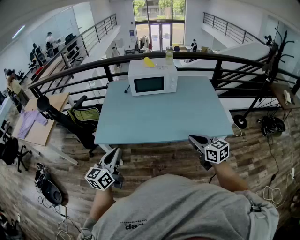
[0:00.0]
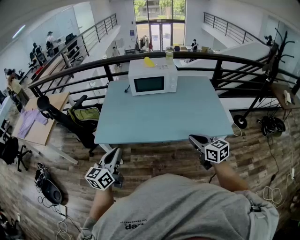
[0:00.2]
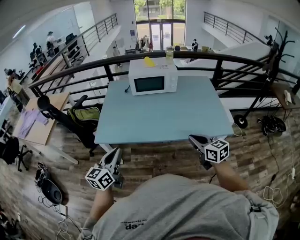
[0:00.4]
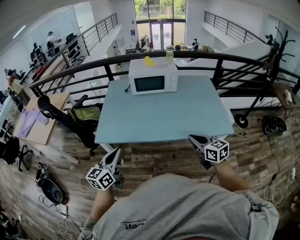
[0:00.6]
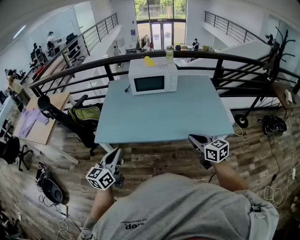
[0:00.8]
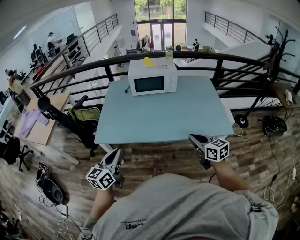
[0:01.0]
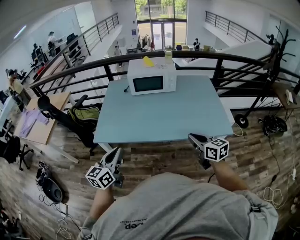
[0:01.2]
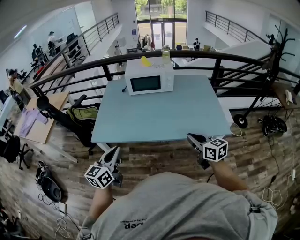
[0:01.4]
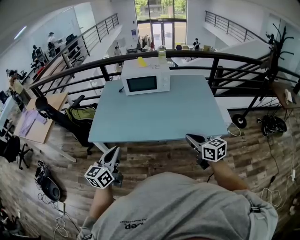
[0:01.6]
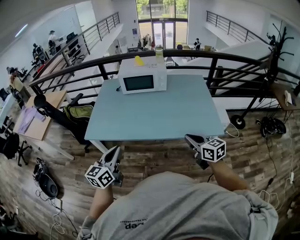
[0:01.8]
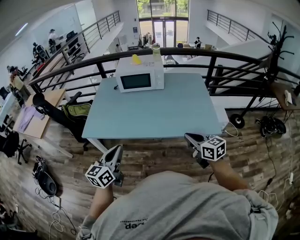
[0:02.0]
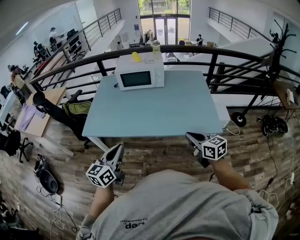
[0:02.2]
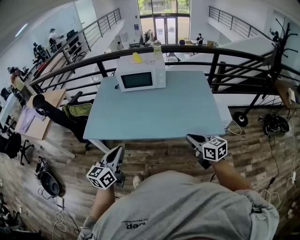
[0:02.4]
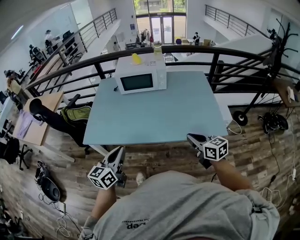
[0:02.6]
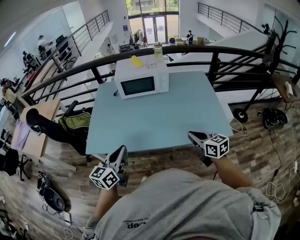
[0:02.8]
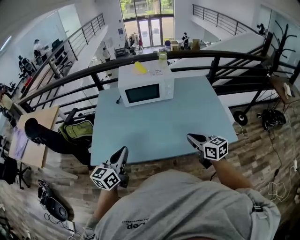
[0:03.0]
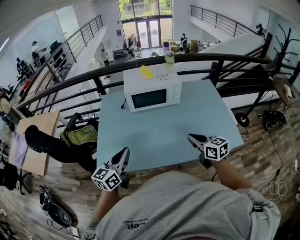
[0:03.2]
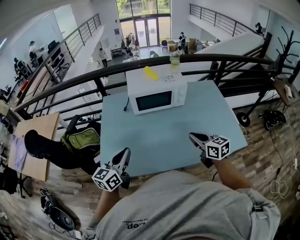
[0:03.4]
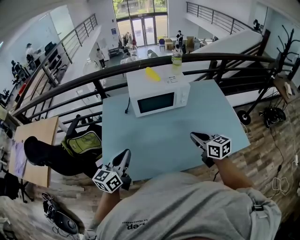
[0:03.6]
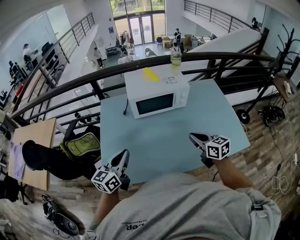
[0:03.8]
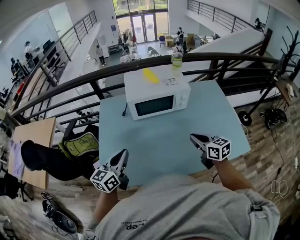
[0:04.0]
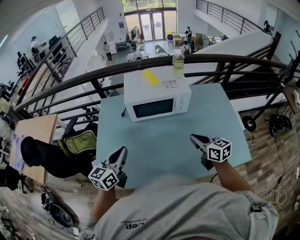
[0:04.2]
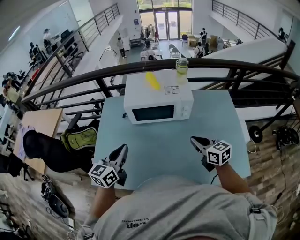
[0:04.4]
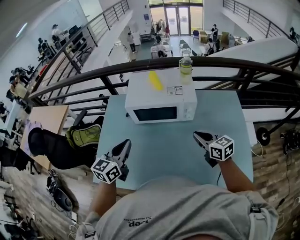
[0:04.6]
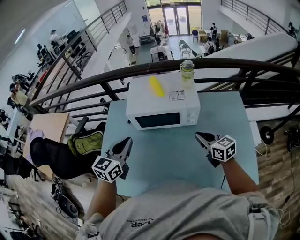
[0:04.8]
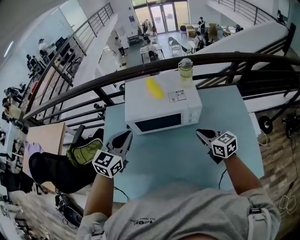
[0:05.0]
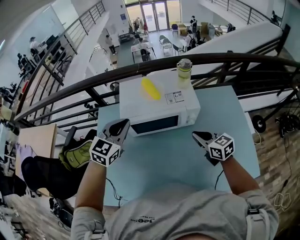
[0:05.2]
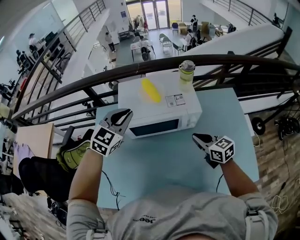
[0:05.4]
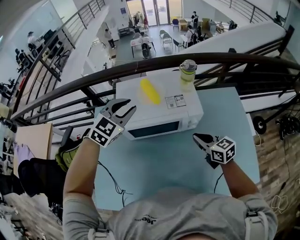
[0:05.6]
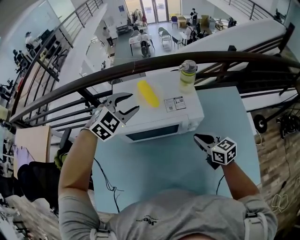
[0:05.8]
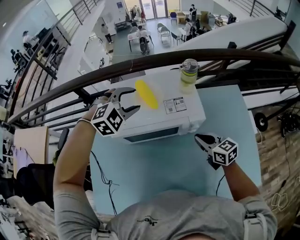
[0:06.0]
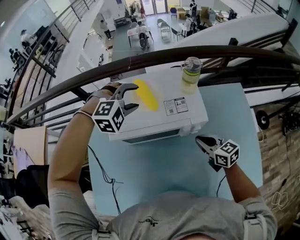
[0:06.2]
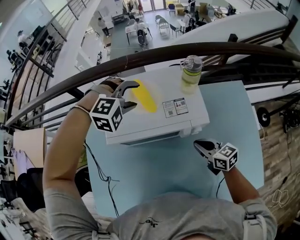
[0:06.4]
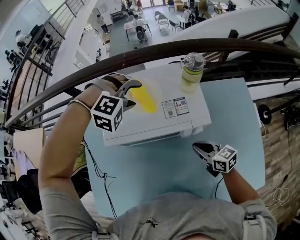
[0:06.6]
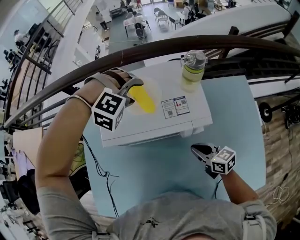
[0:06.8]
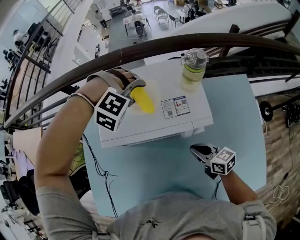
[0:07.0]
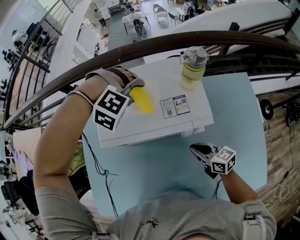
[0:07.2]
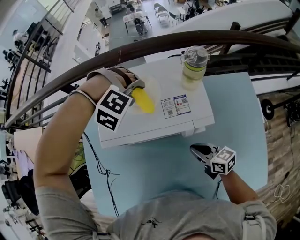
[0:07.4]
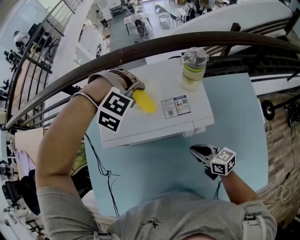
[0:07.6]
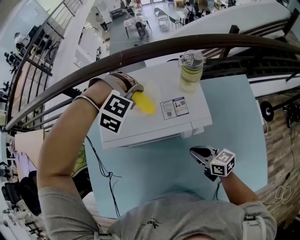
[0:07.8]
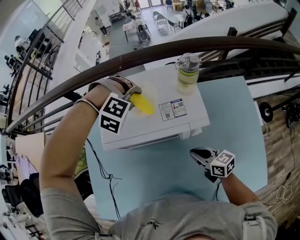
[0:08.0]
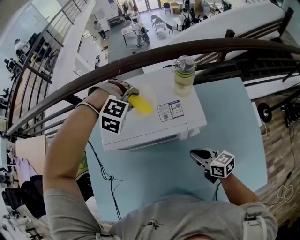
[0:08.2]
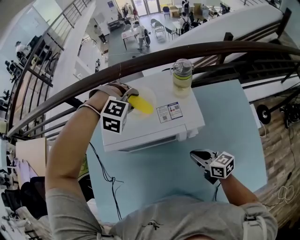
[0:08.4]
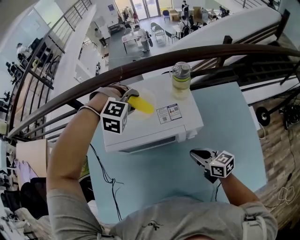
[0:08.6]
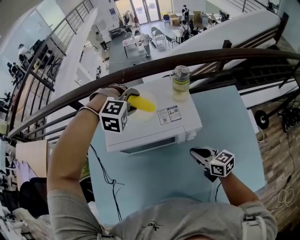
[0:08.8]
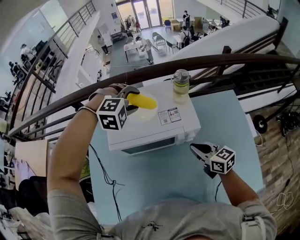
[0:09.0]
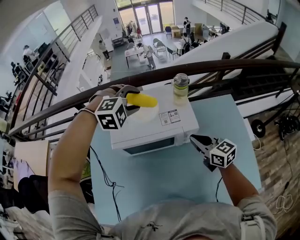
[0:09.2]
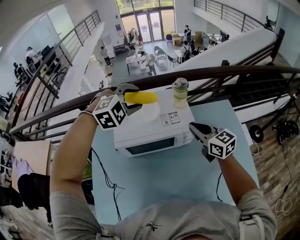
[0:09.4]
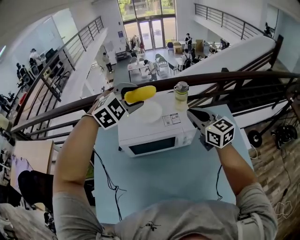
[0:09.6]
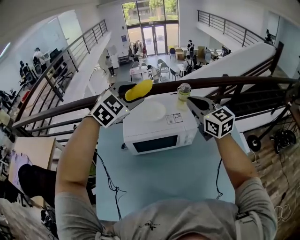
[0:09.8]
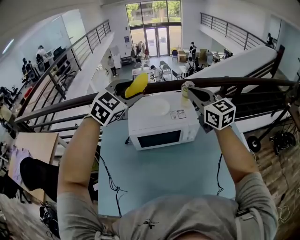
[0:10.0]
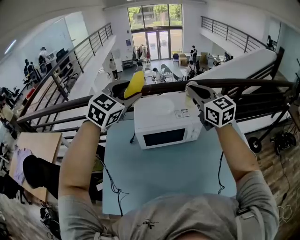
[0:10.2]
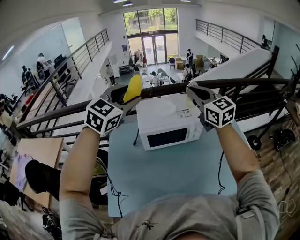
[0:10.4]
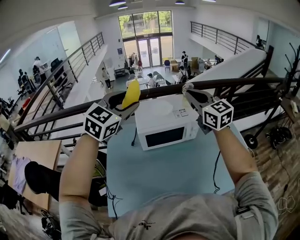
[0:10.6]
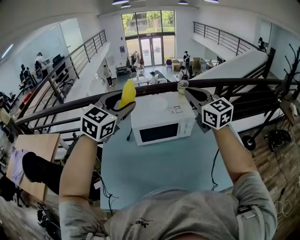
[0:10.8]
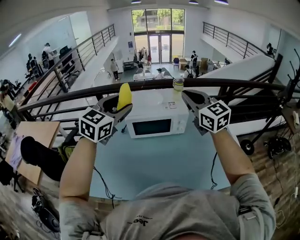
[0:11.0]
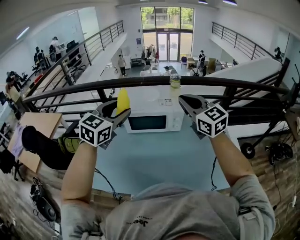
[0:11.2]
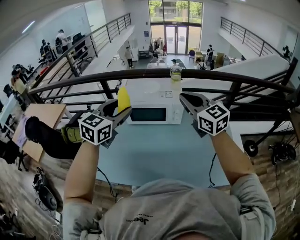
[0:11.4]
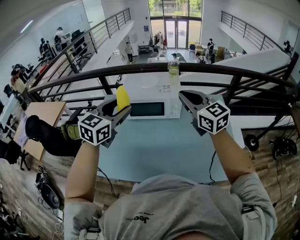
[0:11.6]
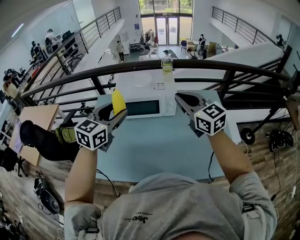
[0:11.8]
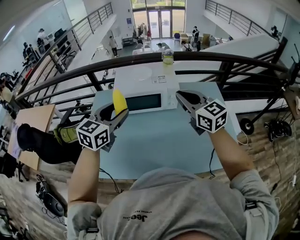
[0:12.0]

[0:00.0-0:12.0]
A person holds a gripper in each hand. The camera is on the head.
0.0 to 1.6 s: Both grippers move to the right, about 5 cm.
1.6 to 3.0 s: Both grippers move forward, some 15 cm.
3.0 to 4.4 s: Both grippers travel together forward, approximately 25 cm.
4.4 to 6.0 s: The right gripper moves forward, some 20 cm. The left gripper goes about 35 cm forward, twists roughly 70 degrees clockwise, seen from behind, and opens.
6.0 to 7.6 s: The grippers both shift downward by roughly 10 cm. The left gripper rolls clockwise, seen from behind, by some 40 degrees.
7.6 to 9.0 s: The two grippers go approximately 10 cm upward. The left gripper swivels about 30 degrees.
9.0 to 10.4 s: The left gripper goes some 35 cm upward, backward and to the left, and tilts its fingers about 40 degrees upward. The right gripper heads upward, covering some 35 cm, and swivels approximately 40 degrees.
10.4 to 12.0 s: Both grippers travel together backward, downward and to the right, approximately 25 cm. The left gripper rotates some 30 degrees.

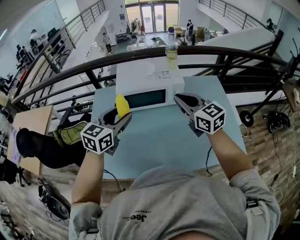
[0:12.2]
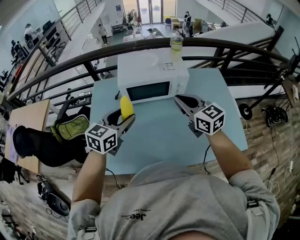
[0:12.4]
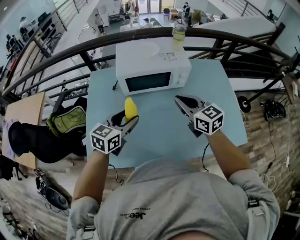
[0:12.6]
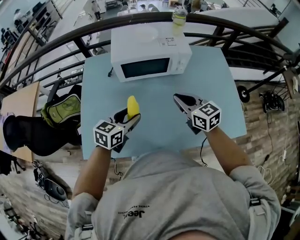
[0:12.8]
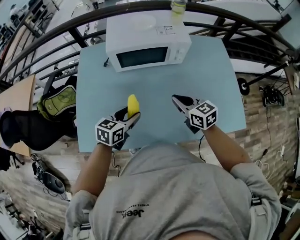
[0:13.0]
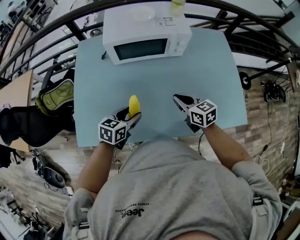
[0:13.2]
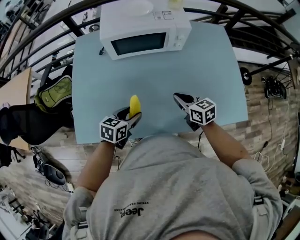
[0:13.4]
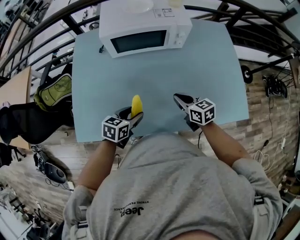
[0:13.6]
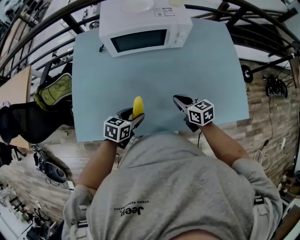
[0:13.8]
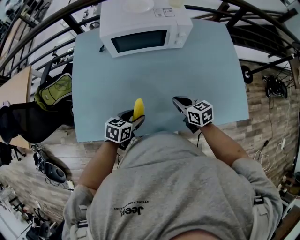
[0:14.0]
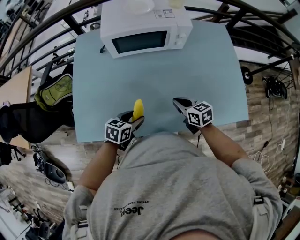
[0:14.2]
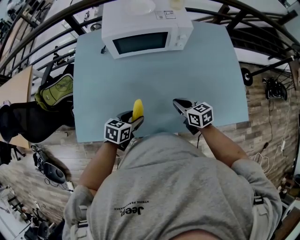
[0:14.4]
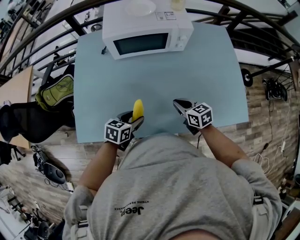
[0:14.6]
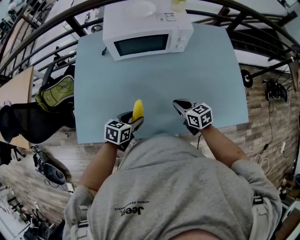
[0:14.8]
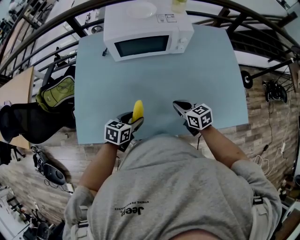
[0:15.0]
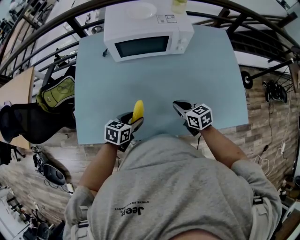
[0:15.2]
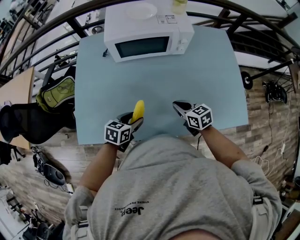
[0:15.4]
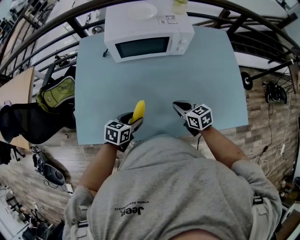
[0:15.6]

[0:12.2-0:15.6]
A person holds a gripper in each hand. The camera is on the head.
12.2 to 13.8 s: The right gripper moves downward, approximately 30 cm, and swivels roughly 40 degrees. The left gripper moves downward and backward, some 35 cm, and changes its angle by approximately 40 degrees.
13.8 to 15.6 s: The grippers stay close to where they were, moving slightly.

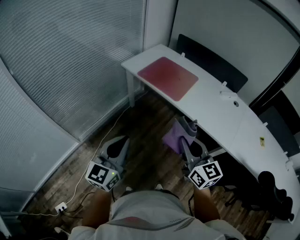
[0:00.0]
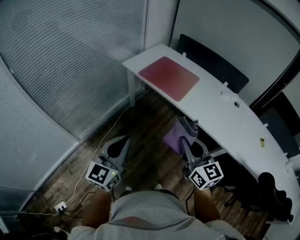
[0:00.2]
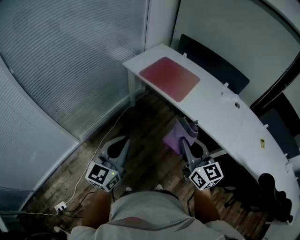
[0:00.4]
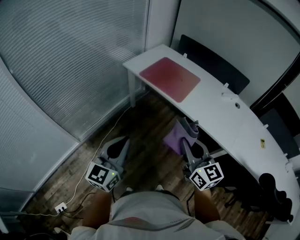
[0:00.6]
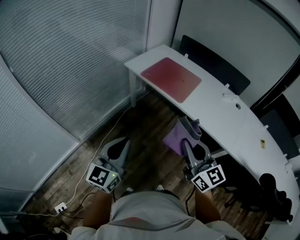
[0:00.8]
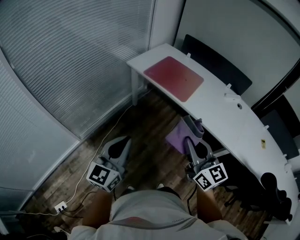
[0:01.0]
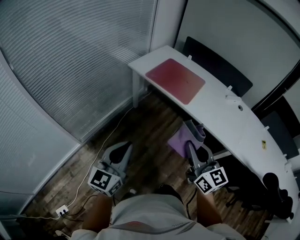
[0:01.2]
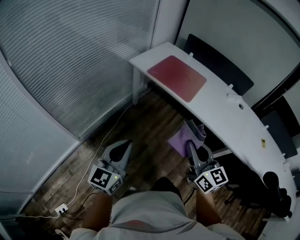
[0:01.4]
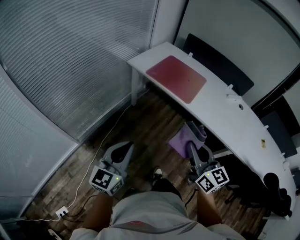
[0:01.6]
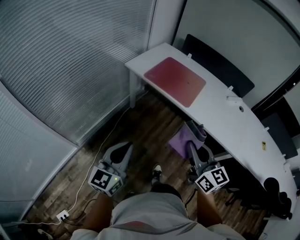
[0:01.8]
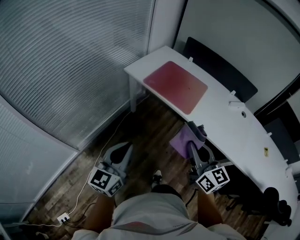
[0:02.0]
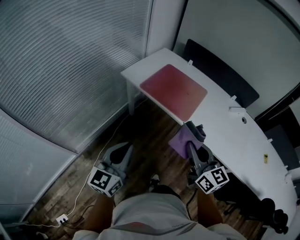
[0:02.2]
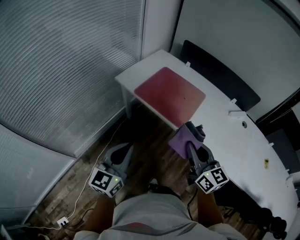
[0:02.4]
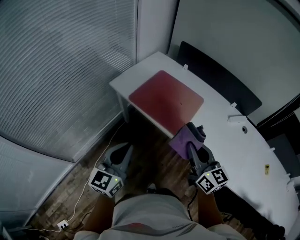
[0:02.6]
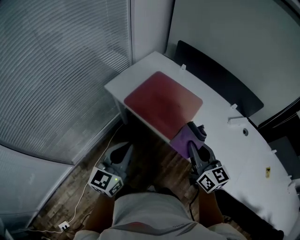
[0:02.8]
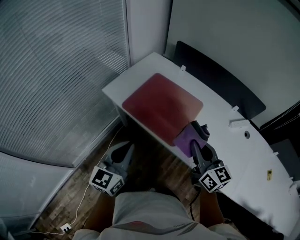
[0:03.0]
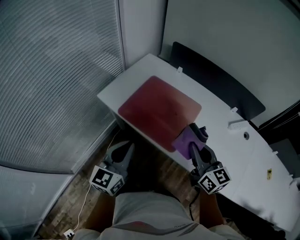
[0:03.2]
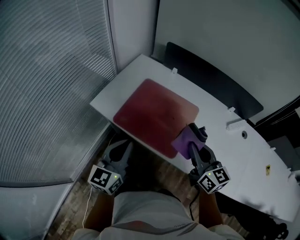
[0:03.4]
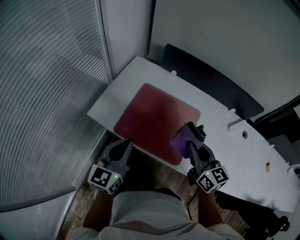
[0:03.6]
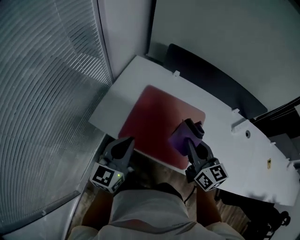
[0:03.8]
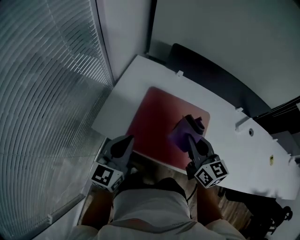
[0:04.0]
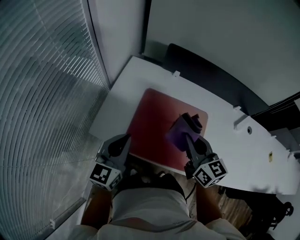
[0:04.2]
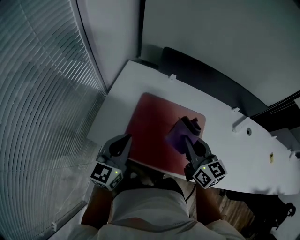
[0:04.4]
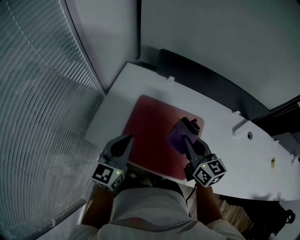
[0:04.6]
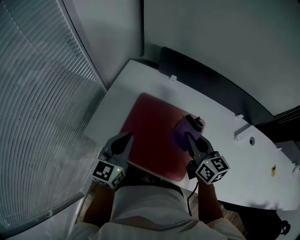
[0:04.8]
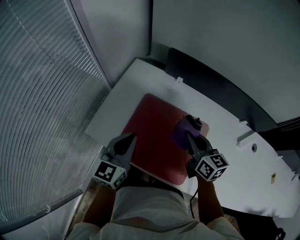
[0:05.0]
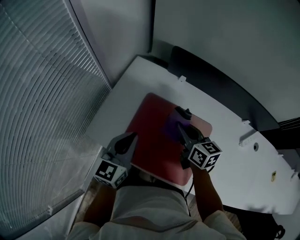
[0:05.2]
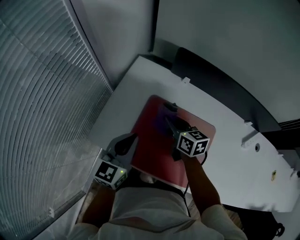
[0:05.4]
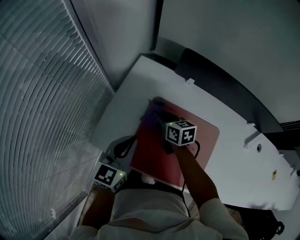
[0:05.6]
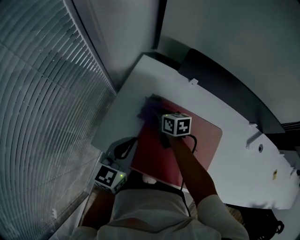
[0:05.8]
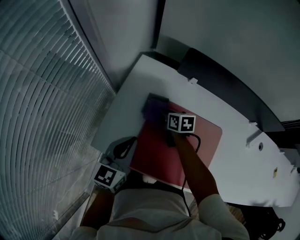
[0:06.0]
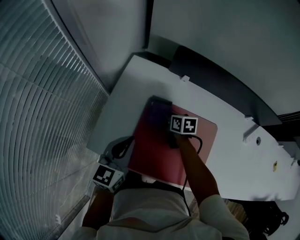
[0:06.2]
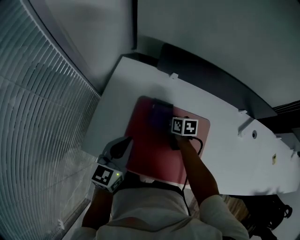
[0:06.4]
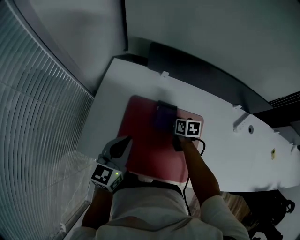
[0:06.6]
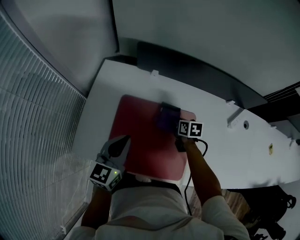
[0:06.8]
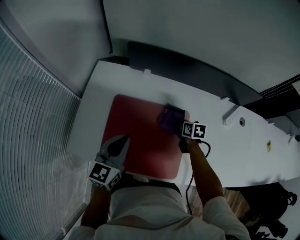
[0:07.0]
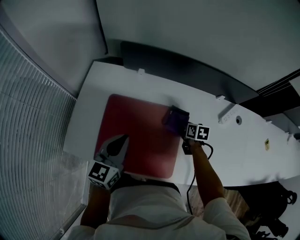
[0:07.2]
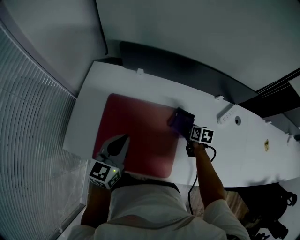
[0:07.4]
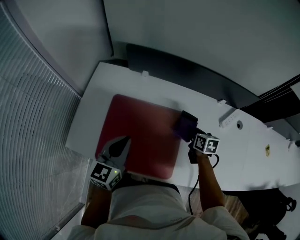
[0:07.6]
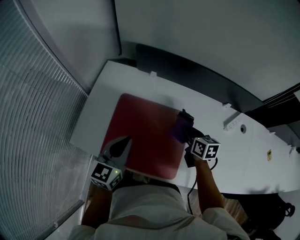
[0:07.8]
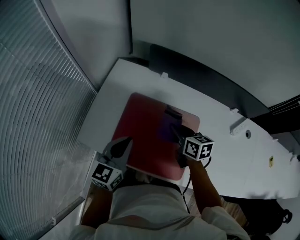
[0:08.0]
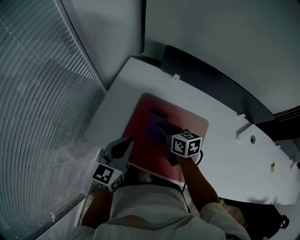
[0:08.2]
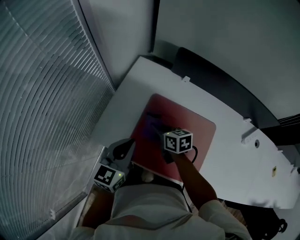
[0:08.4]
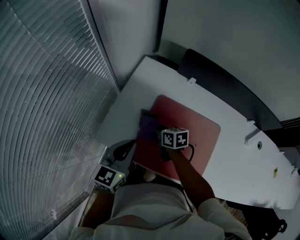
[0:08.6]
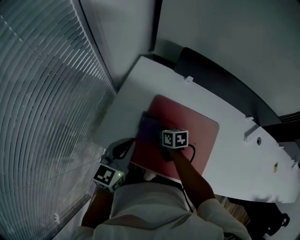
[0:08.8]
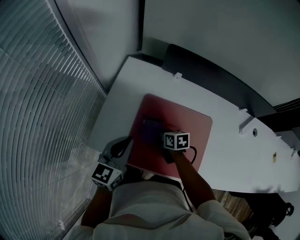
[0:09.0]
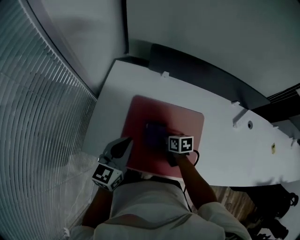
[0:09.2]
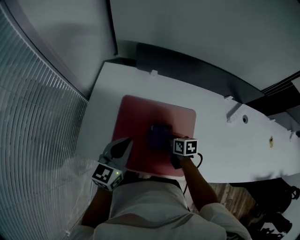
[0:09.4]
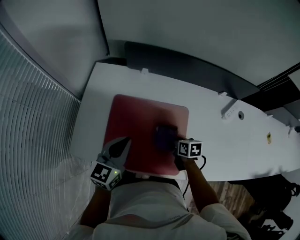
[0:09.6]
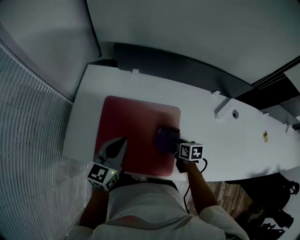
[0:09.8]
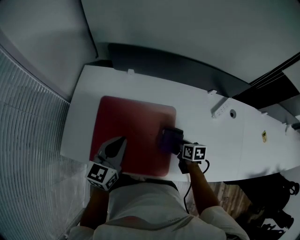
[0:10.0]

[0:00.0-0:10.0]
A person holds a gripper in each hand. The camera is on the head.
0.0 to 1.4 s: The two grippers go some 10 cm to the left.
1.4 to 2.8 s: The pair of grippers is taken forward and to the right, roughly 40 cm.
2.8 to 4.2 s: The right gripper goes some 35 cm forward and to the left. Meanwhile the left gripper travels forward by about 40 cm.
4.2 to 5.8 s: The left gripper travels forward and downward by approximately 15 cm. The right gripper goes some 35 cm forward, downward and to the left, and swivels some 30 degrees.
5.8 to 7.2 s: The left gripper travels to the right by some 20 cm. Meanwhile the right gripper moves to the right, roughly 40 cm, and changes its angle by some 30 degrees.
7.2 to 8.6 s: The right gripper goes upward and returns, roughly 15 cm each way, and turns by approximately 30 degrees; the left gripper ends up about 20 cm from where it was.
8.6 to 10.0 s: The right gripper moves to the right, some 40 cm, and turns by about 30 degrees. The left gripper shifts some 25 cm to the right.
